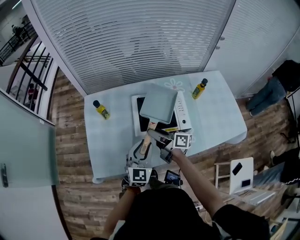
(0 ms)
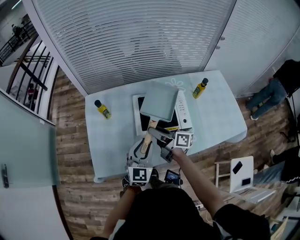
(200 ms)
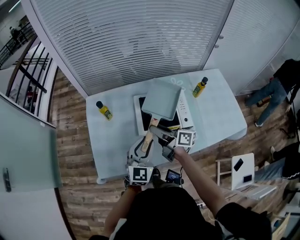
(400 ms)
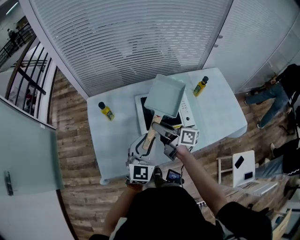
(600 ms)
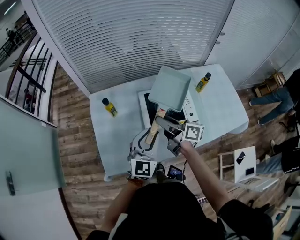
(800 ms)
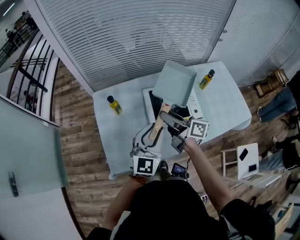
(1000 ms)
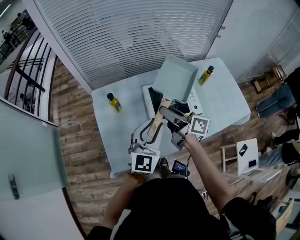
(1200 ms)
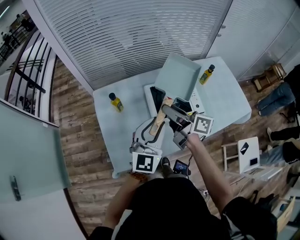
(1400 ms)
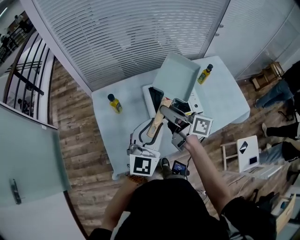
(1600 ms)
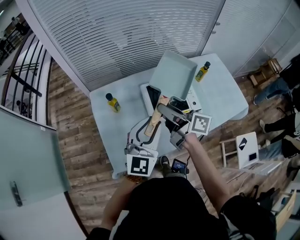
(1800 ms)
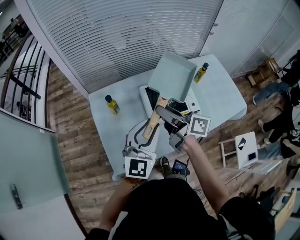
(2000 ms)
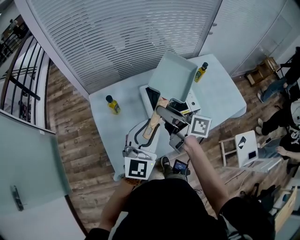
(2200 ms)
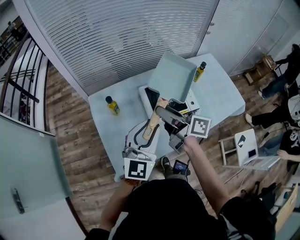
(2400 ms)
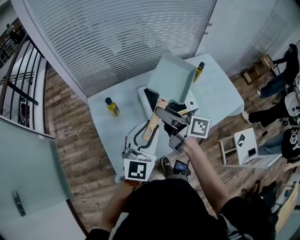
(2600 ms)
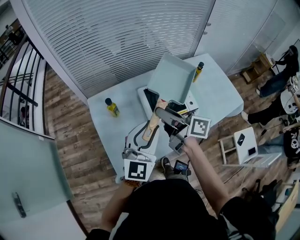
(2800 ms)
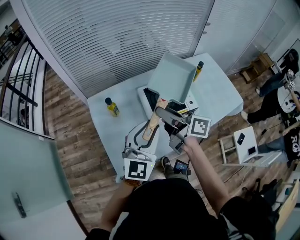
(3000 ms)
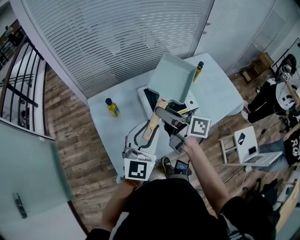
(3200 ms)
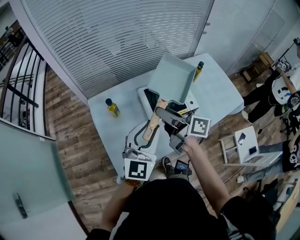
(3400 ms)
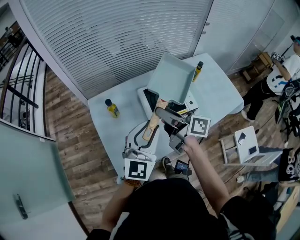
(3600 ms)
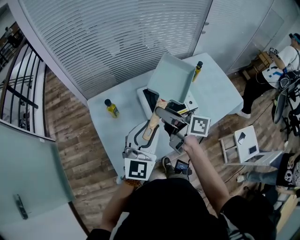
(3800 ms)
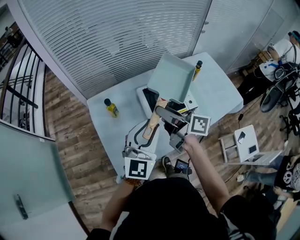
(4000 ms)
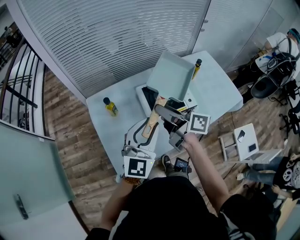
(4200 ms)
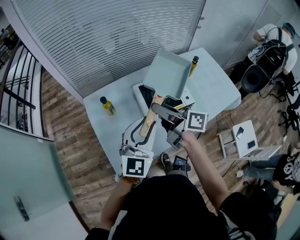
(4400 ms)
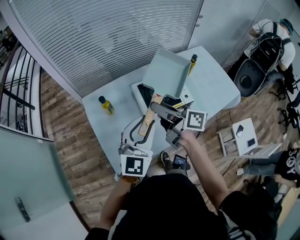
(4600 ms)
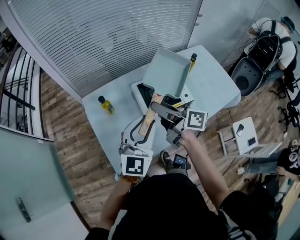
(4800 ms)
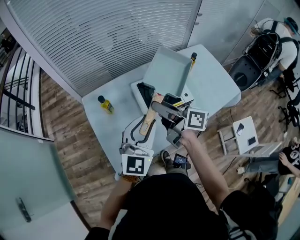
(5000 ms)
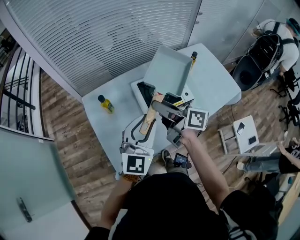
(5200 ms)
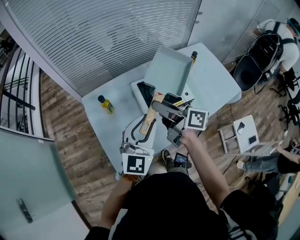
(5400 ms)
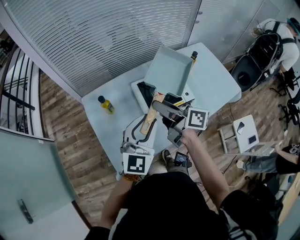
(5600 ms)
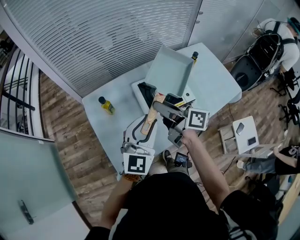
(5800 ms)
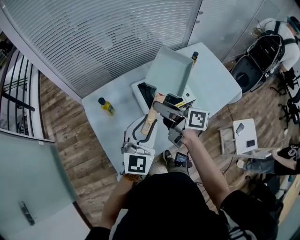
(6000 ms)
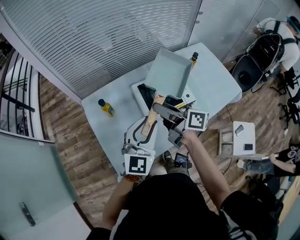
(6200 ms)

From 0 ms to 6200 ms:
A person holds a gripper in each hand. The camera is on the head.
From 0 ms to 1600 ms: The left gripper heads upward and to the left, covering roughly 15 cm, while the right gripper shifts about 15 cm upward.
From 1600 ms to 3200 ms: There are only small adjustments of the grippers.
From 3200 ms to 4600 ms: Both grippers stay about where they are.
From 4600 ms to 6200 ms: The grippers stay close to where they were, moving slightly.

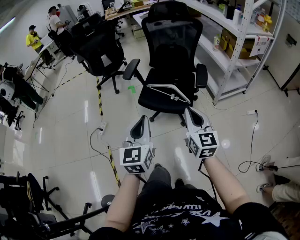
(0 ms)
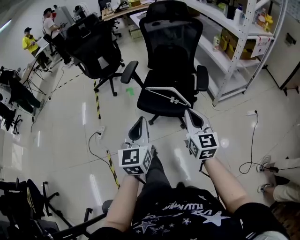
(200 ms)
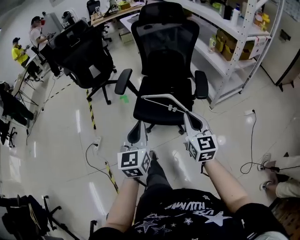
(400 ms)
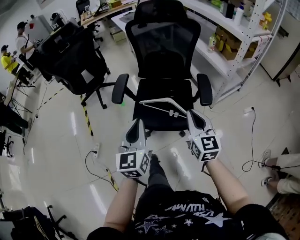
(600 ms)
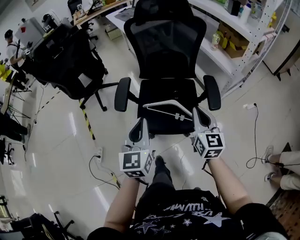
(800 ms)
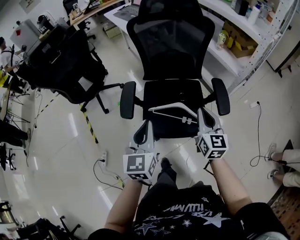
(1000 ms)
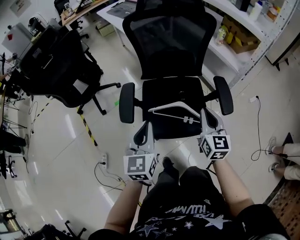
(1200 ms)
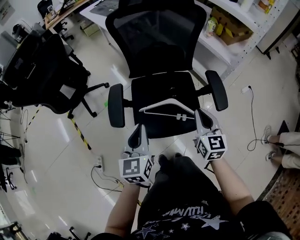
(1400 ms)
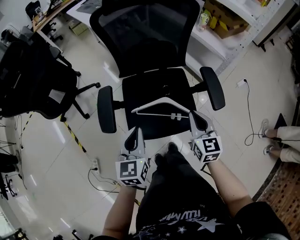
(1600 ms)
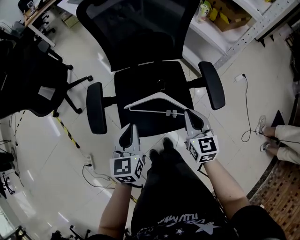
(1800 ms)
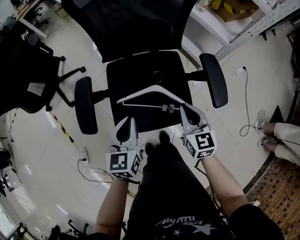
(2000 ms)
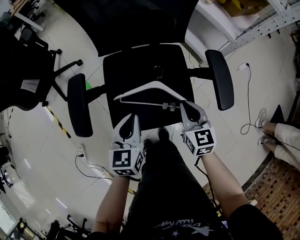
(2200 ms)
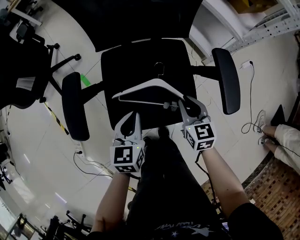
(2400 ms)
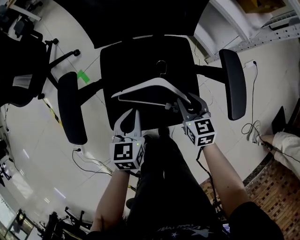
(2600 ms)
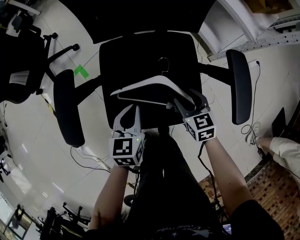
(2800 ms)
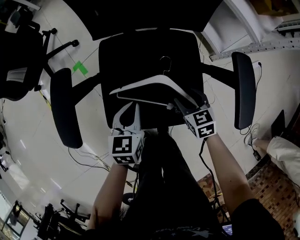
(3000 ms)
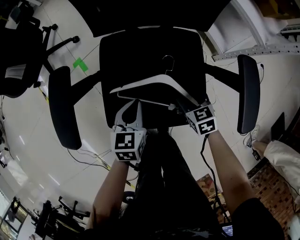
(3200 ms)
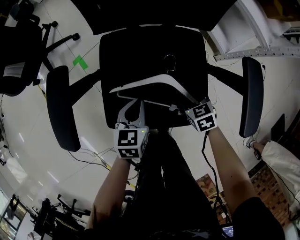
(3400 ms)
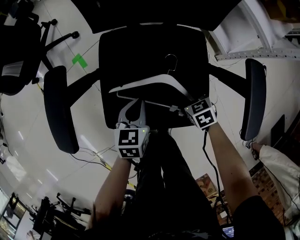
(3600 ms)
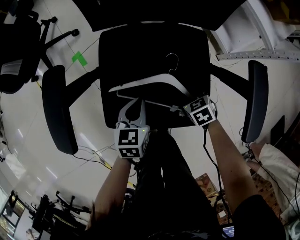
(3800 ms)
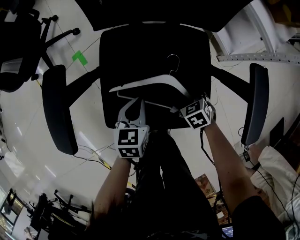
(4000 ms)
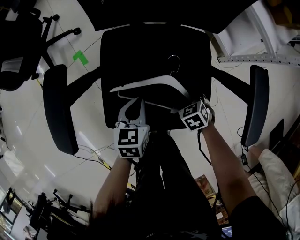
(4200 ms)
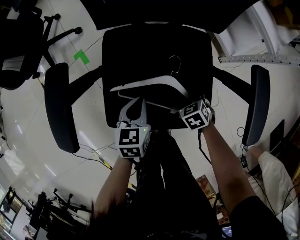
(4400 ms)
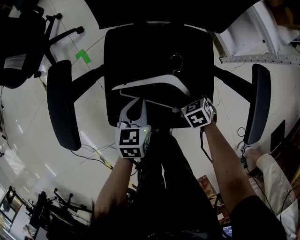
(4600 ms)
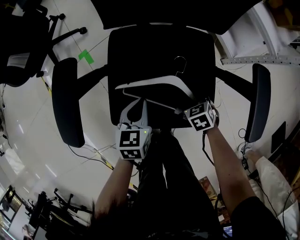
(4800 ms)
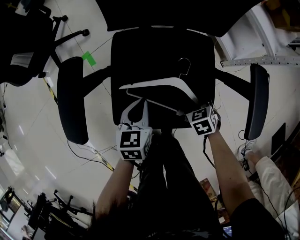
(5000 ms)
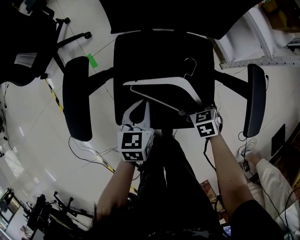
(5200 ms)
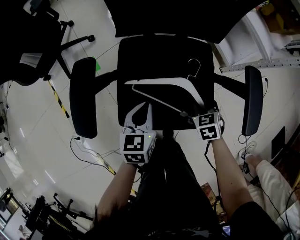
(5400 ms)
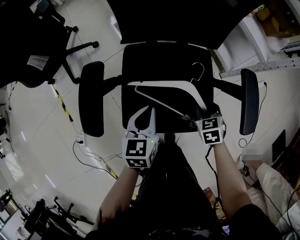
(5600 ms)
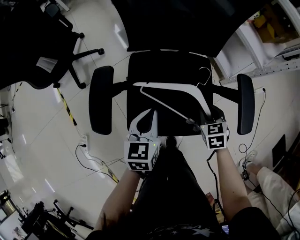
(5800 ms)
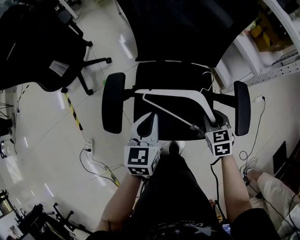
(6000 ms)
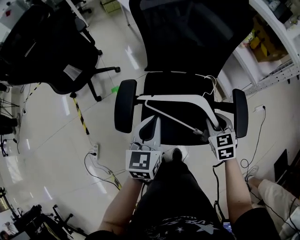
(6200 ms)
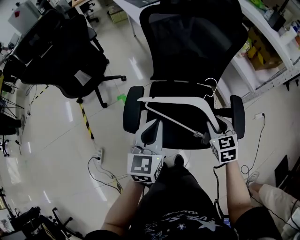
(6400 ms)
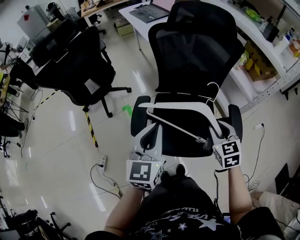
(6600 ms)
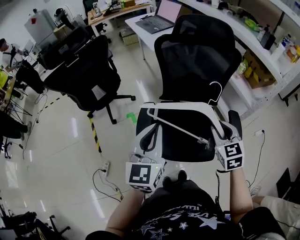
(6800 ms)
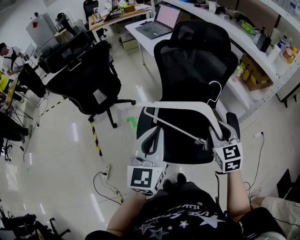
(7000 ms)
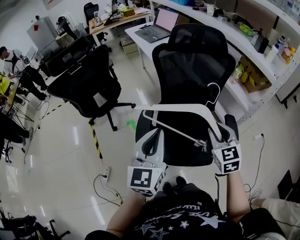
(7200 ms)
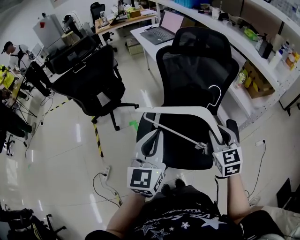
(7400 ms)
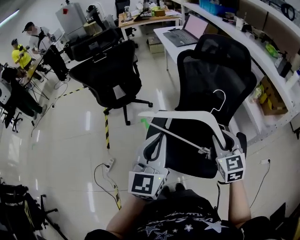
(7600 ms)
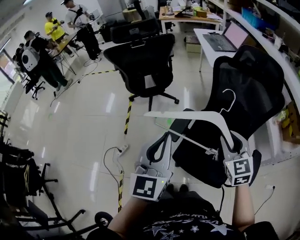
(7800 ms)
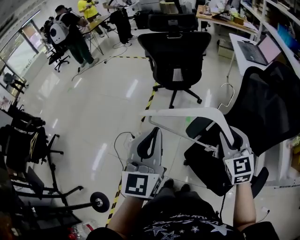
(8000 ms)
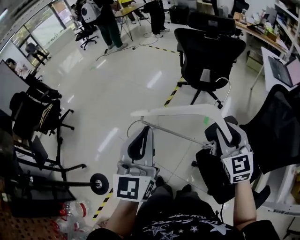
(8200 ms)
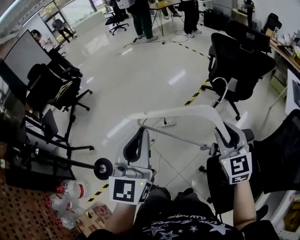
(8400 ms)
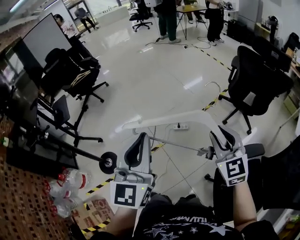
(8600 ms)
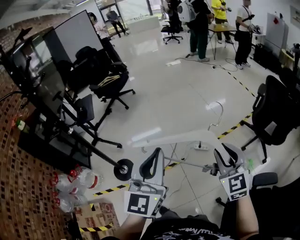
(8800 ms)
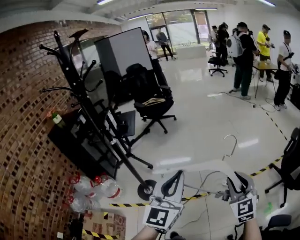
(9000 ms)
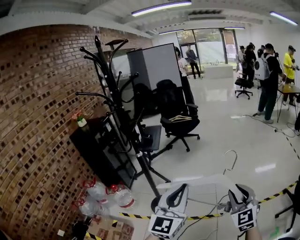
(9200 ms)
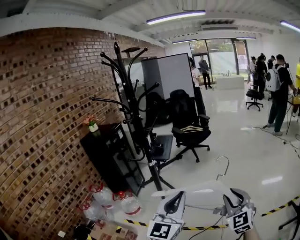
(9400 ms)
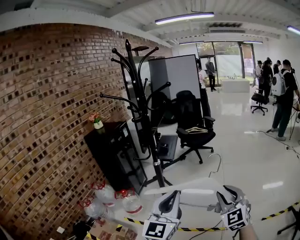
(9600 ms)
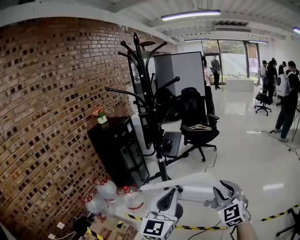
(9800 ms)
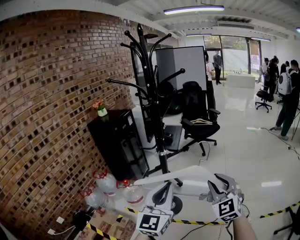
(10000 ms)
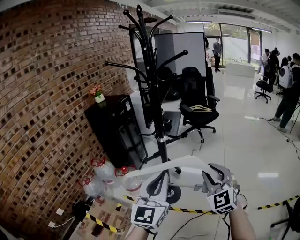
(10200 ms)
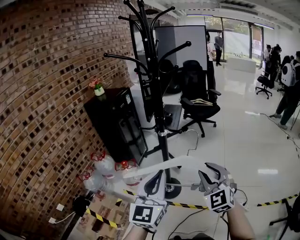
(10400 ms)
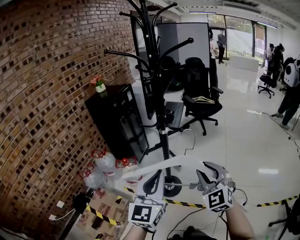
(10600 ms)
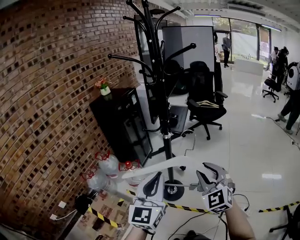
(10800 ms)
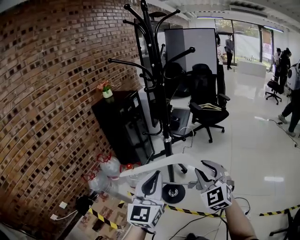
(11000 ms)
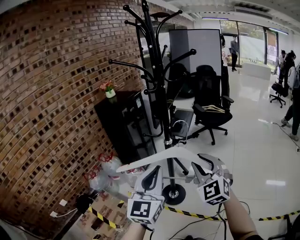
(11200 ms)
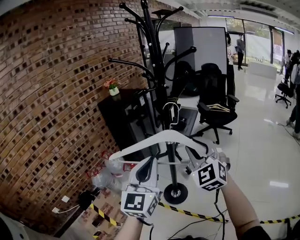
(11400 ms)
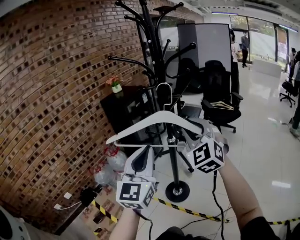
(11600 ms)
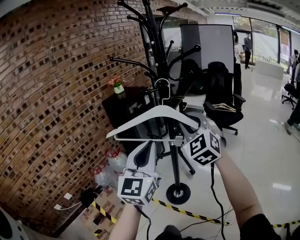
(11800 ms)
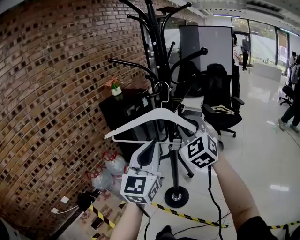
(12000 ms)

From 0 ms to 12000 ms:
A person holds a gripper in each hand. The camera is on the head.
From 0 ms to 1600 ms: The two grippers go roughly 35 cm forward and downward. The right gripper changes its angle by about 30 degrees. The left gripper rotates about 30 degrees.
From 1600 ms to 3000 ms: The left gripper goes approximately 25 cm downward and forward. Meanwhile the right gripper moves downward, approximately 25 cm, rotates roughly 30 degrees, and opens its fingers.
From 3000 ms to 4400 ms: The right gripper moves downward, some 10 cm, rotates roughly 30 degrees, and closes up; the left gripper shifts approximately 5 cm downward.
From 4400 ms to 6000 ms: Both grippers move upward, approximately 20 cm. The right gripper rotates approximately 30 degrees.
From 6000 ms to 7600 ms: Both grippers move upward, some 30 cm. The right gripper changes its angle by about 30 degrees. The left gripper changes its angle by approximately 30 degrees.
From 7600 ms to 9000 ms: The two grippers travel together, roughly 60 cm. The right gripper changes its angle by approximately 100 degrees. Meanwhile the left gripper changes its angle by some 90 degrees.
From 9000 ms to 10400 ms: The right gripper moves approximately 35 cm, and changes its angle by about 40 degrees. The left gripper ends up some 30 cm from where it was, and swivels about 30 degrees.
From 10400 ms to 12000 ms: The right gripper is displaced forward and upward by some 30 cm. The left gripper shifts roughly 20 cm forward and upward.

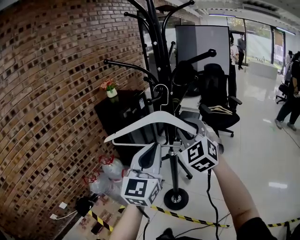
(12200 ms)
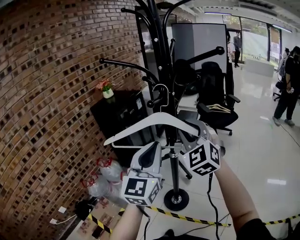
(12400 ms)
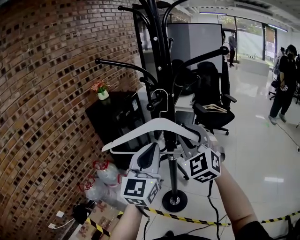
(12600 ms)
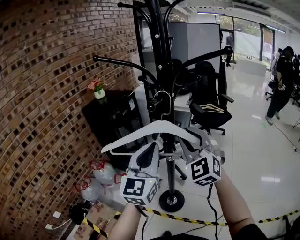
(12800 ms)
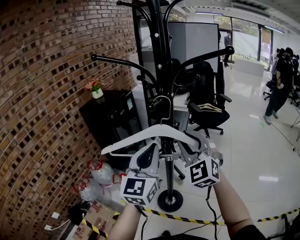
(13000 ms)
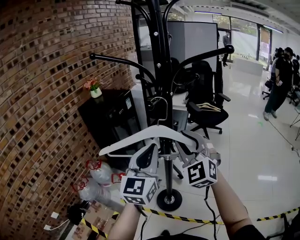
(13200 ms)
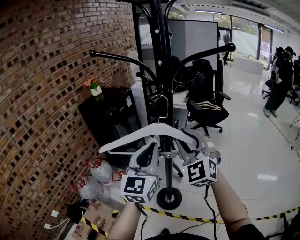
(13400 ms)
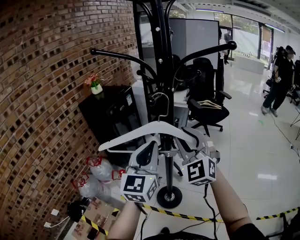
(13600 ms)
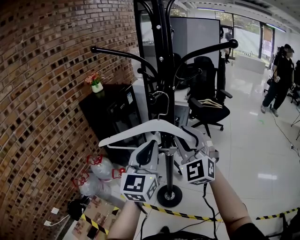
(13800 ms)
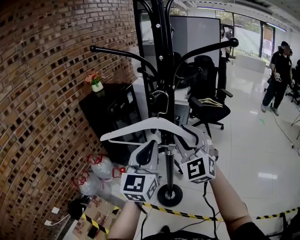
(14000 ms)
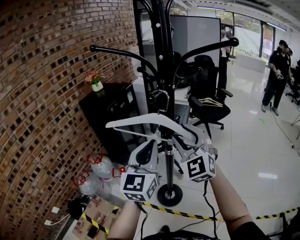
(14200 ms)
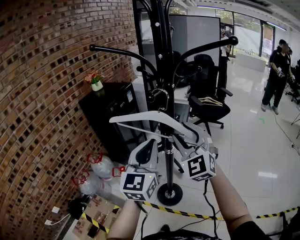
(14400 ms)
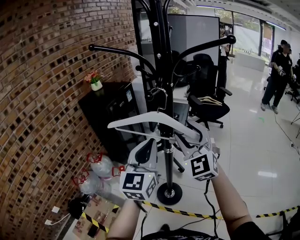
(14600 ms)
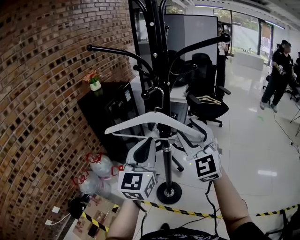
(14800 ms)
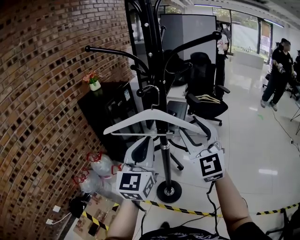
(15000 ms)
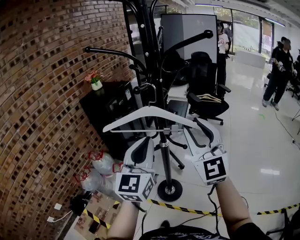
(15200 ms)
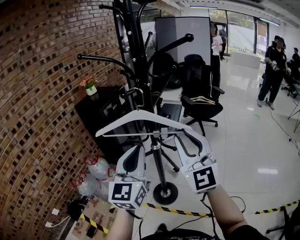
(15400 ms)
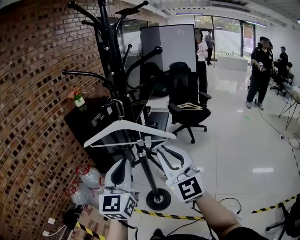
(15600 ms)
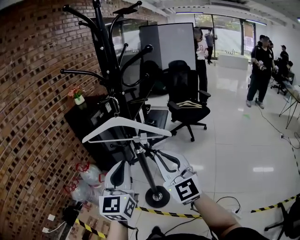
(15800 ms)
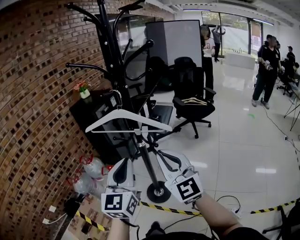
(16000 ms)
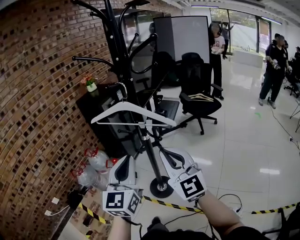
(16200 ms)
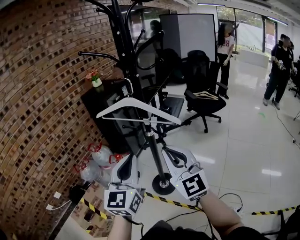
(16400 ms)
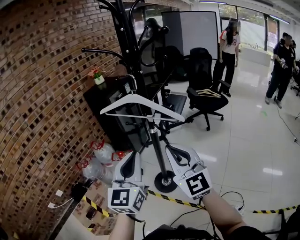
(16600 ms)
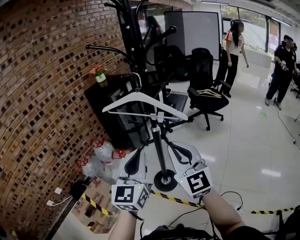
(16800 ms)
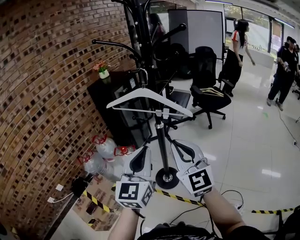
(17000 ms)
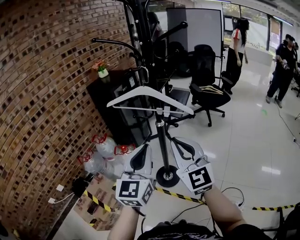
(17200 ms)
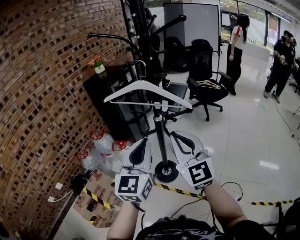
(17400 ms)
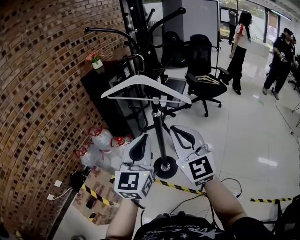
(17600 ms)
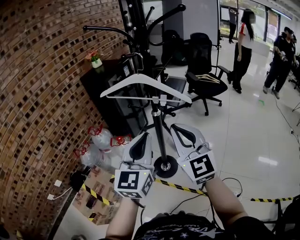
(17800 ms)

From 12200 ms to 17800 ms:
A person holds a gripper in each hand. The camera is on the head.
From 12200 ms to 13600 ms: The left gripper moves forward, approximately 5 cm.
From 13600 ms to 15000 ms: The right gripper ends up some 5 cm from where it was, and opens.
From 15000 ms to 16400 ms: The two grippers go about 15 cm backward. The right gripper changes its angle by roughly 20 degrees, and closes its fingers.
From 16400 ms to 17800 ms: The grippers make only small movements.
